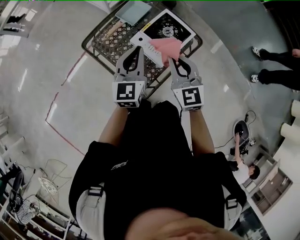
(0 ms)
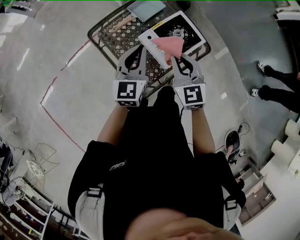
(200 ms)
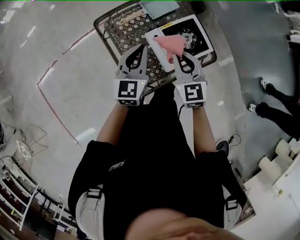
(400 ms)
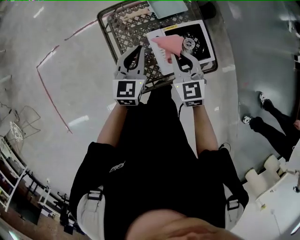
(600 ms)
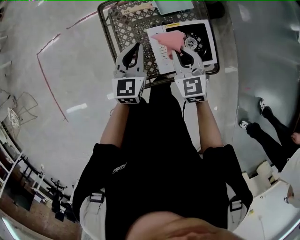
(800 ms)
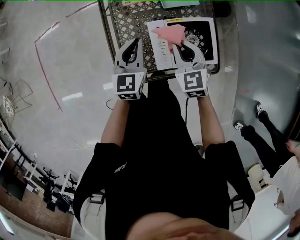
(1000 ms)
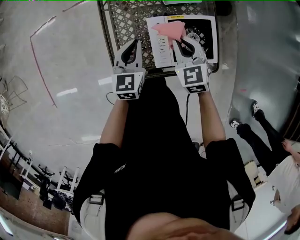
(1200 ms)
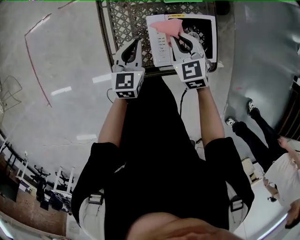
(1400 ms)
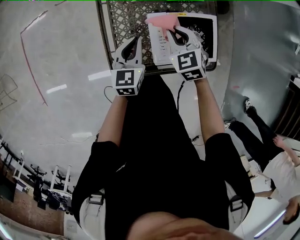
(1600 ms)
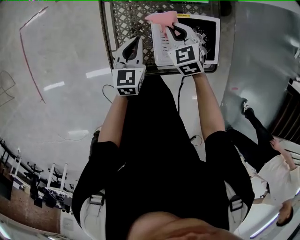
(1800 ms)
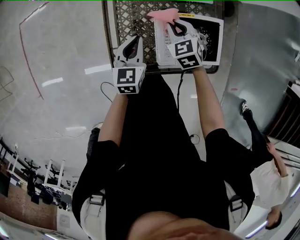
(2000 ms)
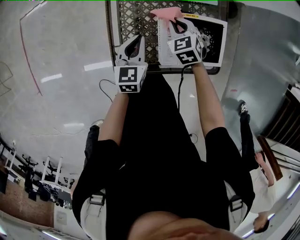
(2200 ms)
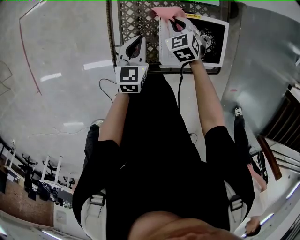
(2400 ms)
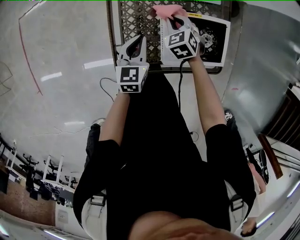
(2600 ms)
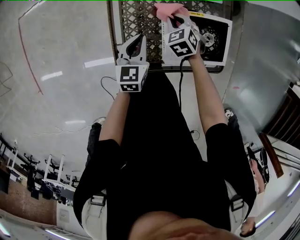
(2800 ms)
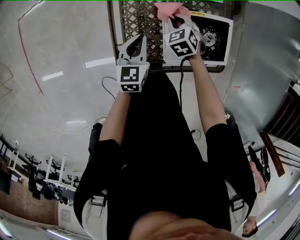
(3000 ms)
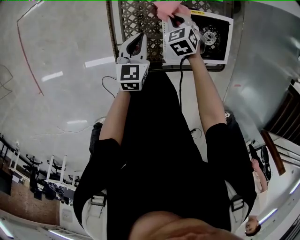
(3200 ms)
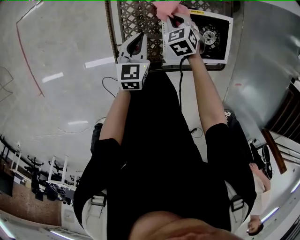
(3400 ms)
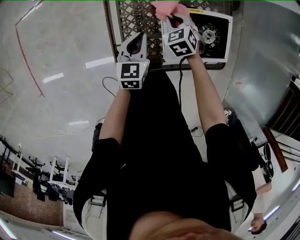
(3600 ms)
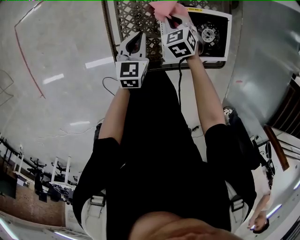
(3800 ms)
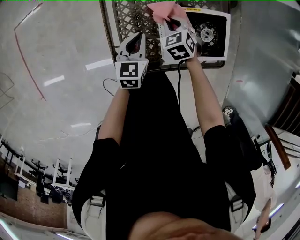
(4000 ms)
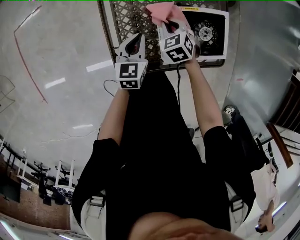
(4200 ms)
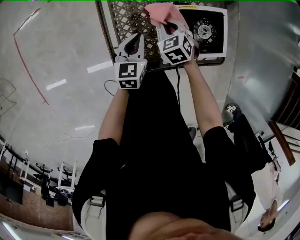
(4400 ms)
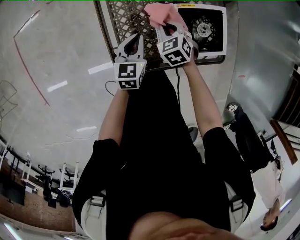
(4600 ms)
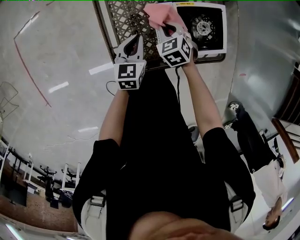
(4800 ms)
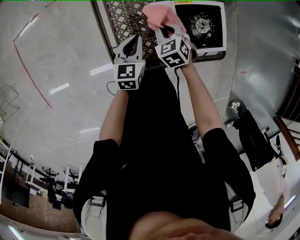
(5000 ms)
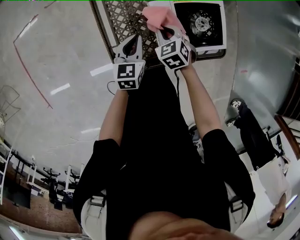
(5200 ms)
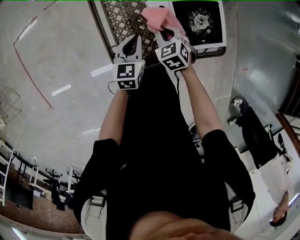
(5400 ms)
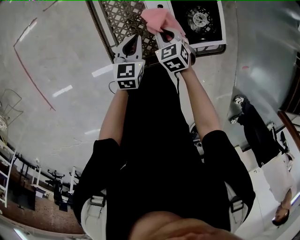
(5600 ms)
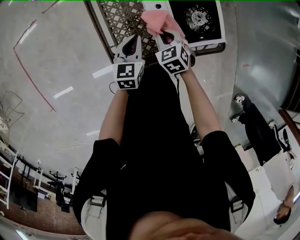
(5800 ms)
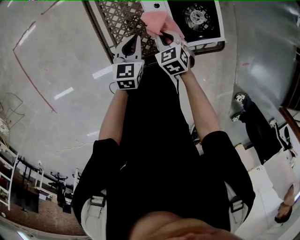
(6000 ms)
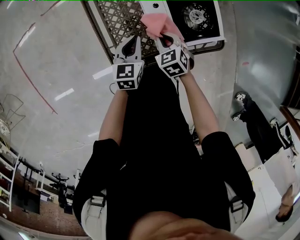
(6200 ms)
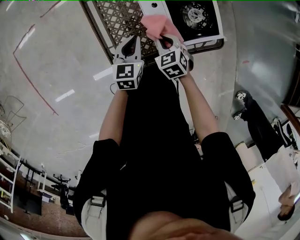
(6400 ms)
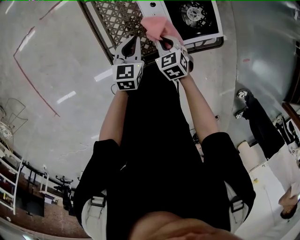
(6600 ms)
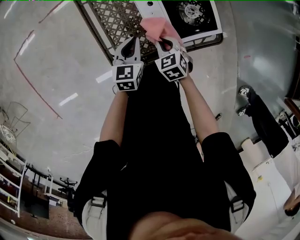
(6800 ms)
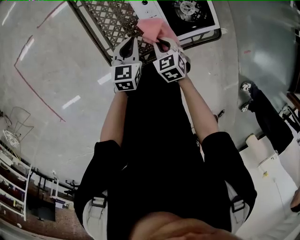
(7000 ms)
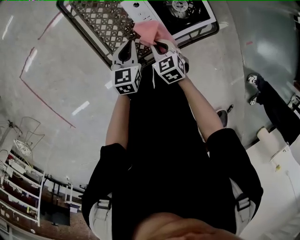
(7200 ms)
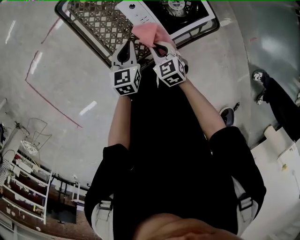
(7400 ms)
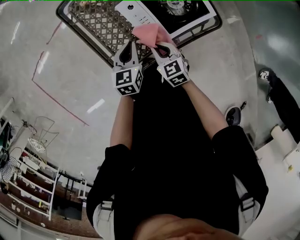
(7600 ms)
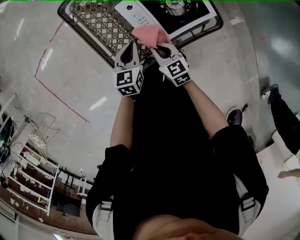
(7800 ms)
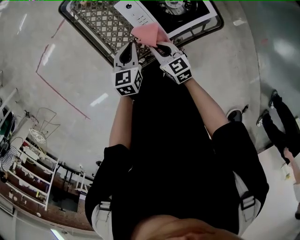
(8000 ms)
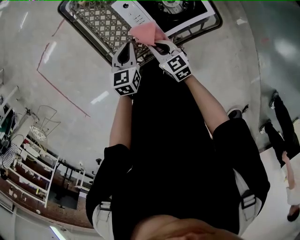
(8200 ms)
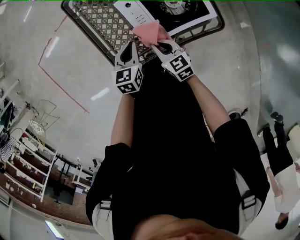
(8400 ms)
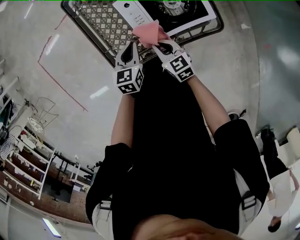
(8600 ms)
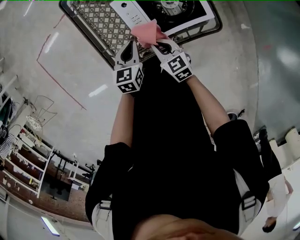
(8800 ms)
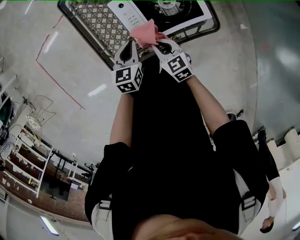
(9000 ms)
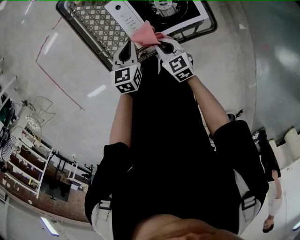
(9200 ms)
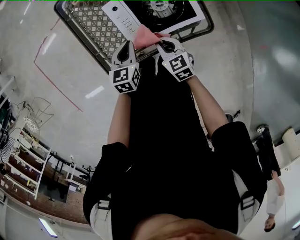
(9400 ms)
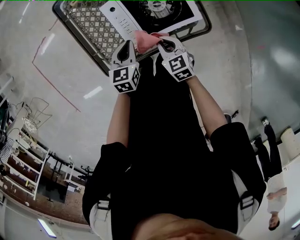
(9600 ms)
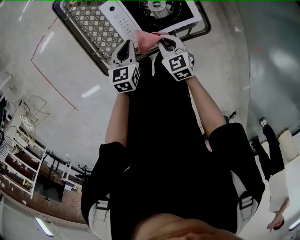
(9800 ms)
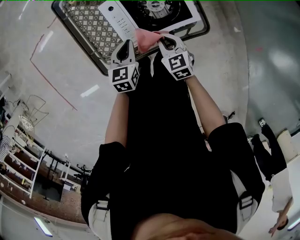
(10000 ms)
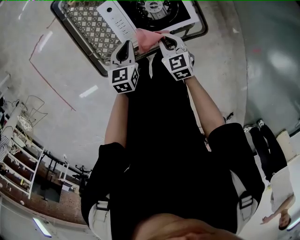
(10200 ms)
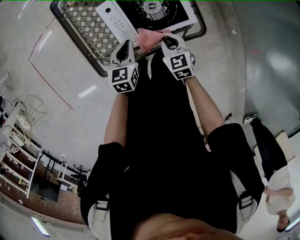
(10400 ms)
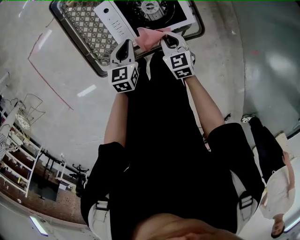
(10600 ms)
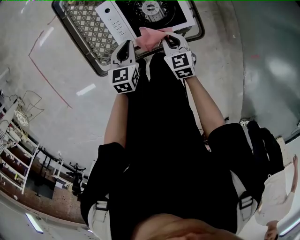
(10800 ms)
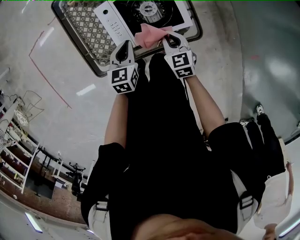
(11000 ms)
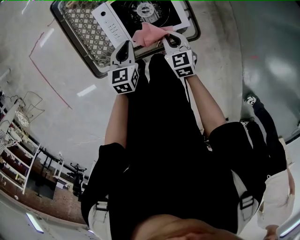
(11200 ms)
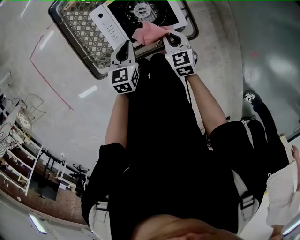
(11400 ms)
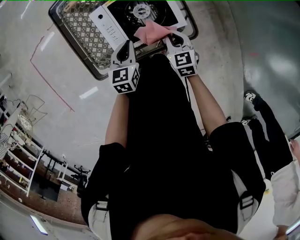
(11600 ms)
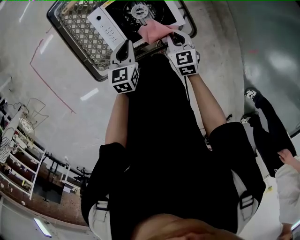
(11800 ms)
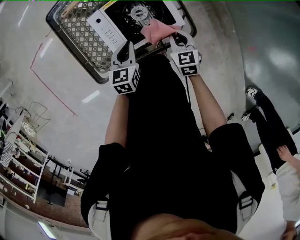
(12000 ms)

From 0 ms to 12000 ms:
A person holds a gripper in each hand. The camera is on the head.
From 0 ms to 1600 ms: Both grippers travel together downward, some 20 cm. The left gripper swivels some 40 degrees; the right gripper turns by about 50 degrees.
From 1600 ms to 3000 ms: The right gripper shifts approximately 15 cm downward, while the left gripper goes approximately 5 cm downward.
From 3000 ms to 4400 ms: The grippers move only a little.
From 4400 ms to 6000 ms: The right gripper shifts about 10 cm backward.
From 6000 ms to 7600 ms: The right gripper heads backward, covering some 5 cm, and swivels some 30 degrees.
From 7600 ms to 9000 ms: The right gripper shifts some 5 cm to the right; the left gripper changes place by roughly 5 cm.
From 9000 ms to 10400 ms: The left gripper shifts about 5 cm to the right. Meanwhile the right gripper shifts about 10 cm to the right.
From 10400 ms to 12000 ms: The right gripper travels to the right by roughly 10 cm. Meanwhile the left gripper moves to the right, approximately 5 cm.

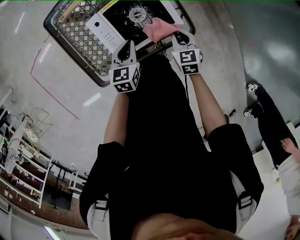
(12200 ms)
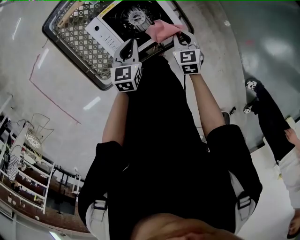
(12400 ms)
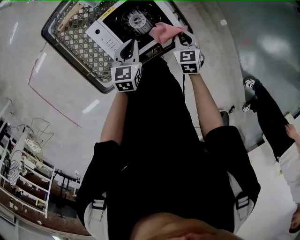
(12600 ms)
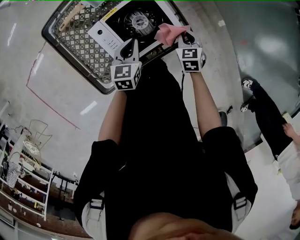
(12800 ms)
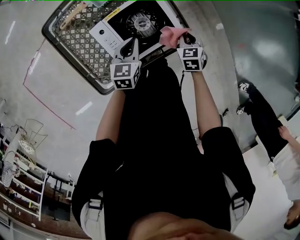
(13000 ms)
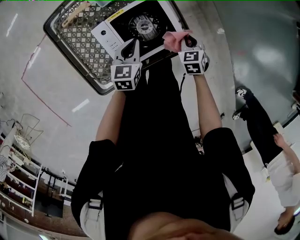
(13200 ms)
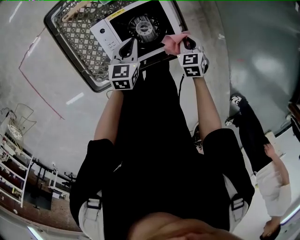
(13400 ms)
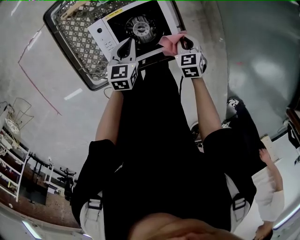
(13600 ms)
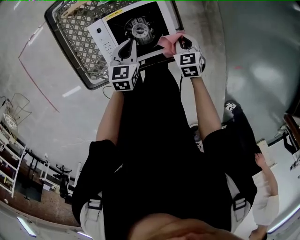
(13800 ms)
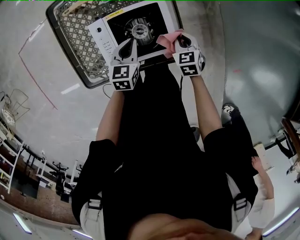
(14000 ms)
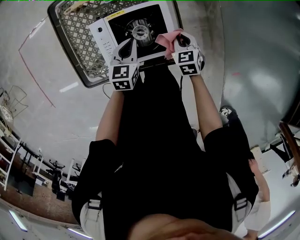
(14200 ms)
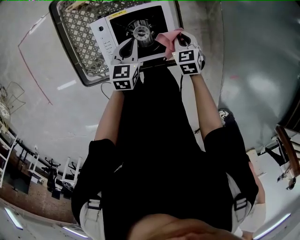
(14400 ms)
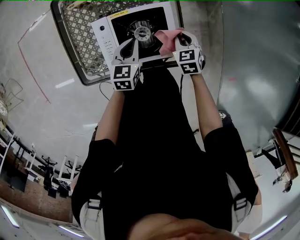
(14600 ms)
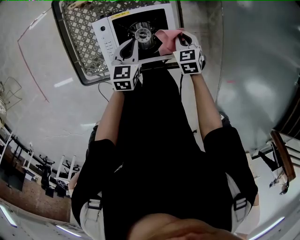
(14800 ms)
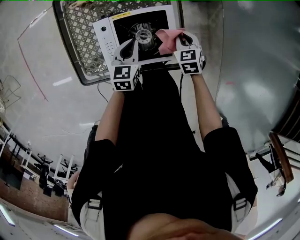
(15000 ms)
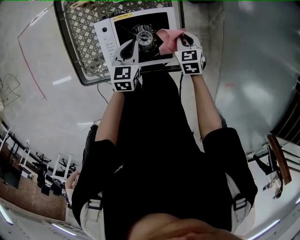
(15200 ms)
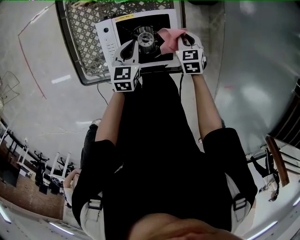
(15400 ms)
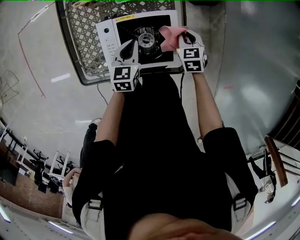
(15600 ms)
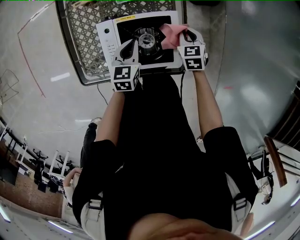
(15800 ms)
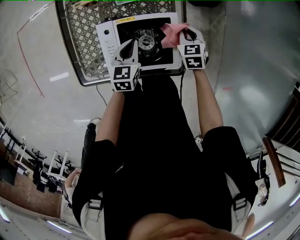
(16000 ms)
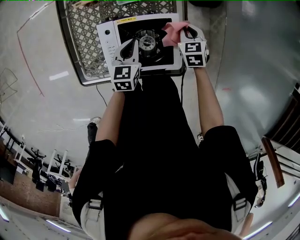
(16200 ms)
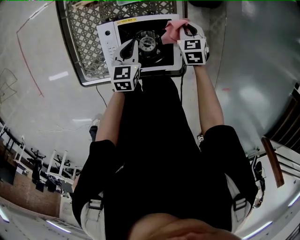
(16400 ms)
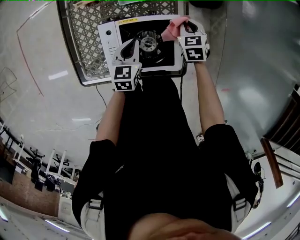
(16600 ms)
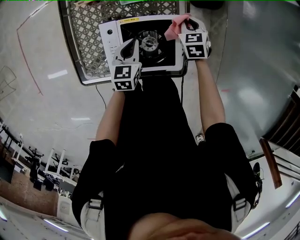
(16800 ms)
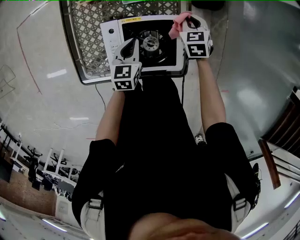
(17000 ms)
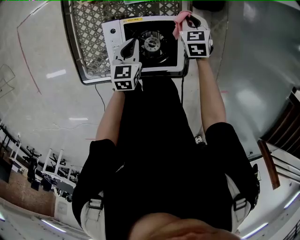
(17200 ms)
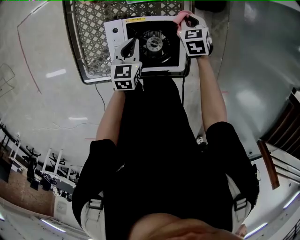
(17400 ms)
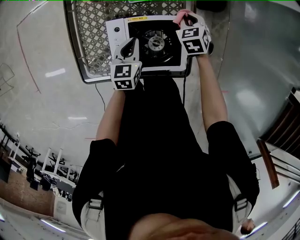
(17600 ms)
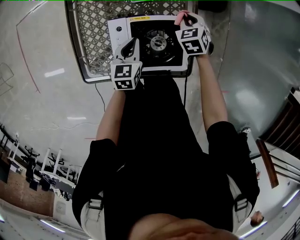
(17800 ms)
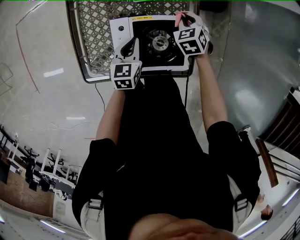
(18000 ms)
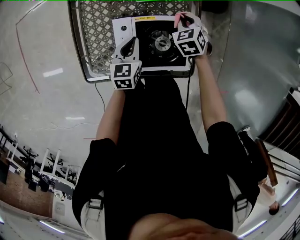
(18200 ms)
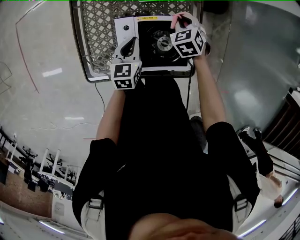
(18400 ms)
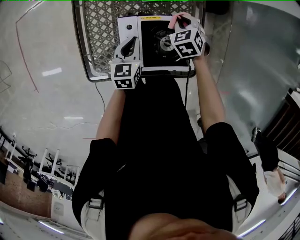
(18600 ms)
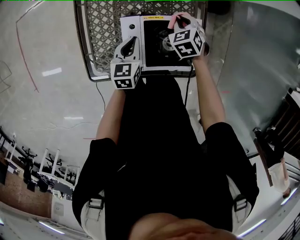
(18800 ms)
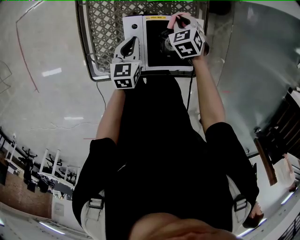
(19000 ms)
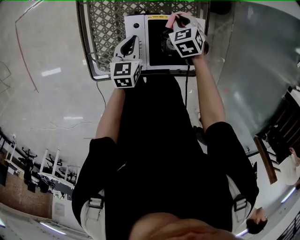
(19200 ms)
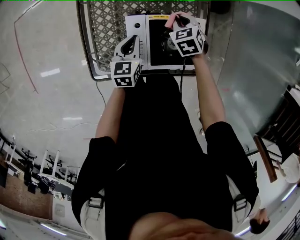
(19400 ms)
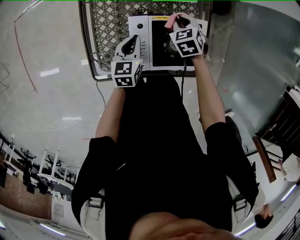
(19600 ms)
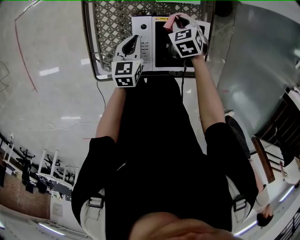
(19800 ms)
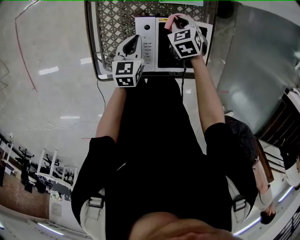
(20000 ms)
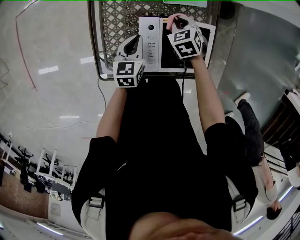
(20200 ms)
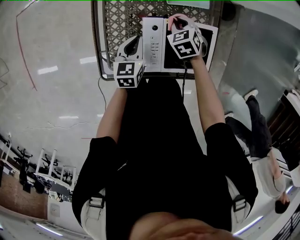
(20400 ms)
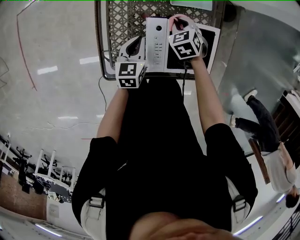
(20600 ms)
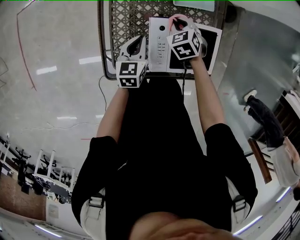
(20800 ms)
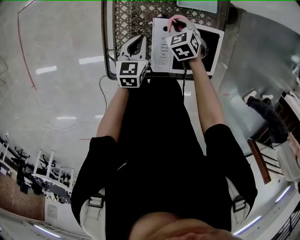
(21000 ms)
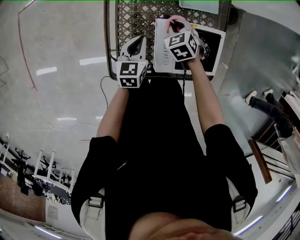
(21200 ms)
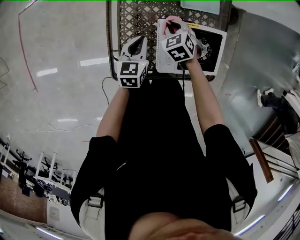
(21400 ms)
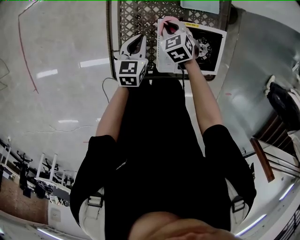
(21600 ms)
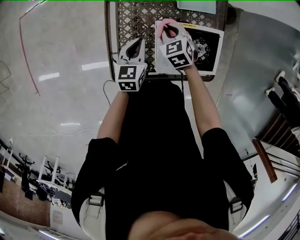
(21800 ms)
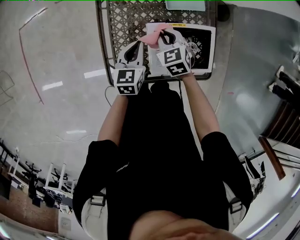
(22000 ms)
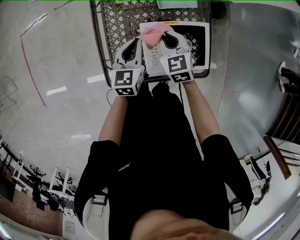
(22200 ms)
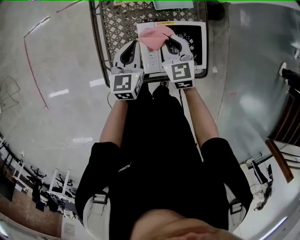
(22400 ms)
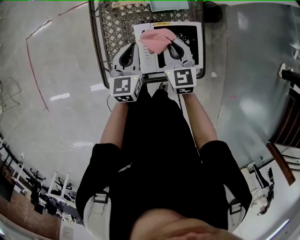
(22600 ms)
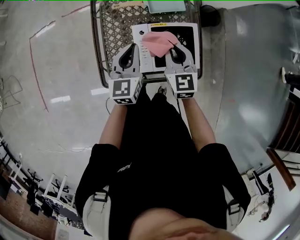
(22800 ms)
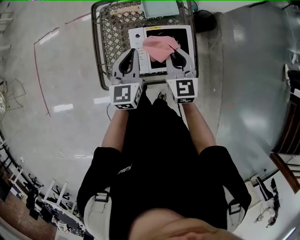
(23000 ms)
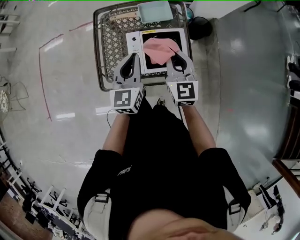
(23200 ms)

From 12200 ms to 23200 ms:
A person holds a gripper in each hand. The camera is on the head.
From 12200 ms to 13800 ms: The grippers both shift forward by some 10 cm.
From 13800 ms to 15400 ms: The right gripper heads forward, covering approximately 10 cm.
From 15400 ms to 17000 ms: The right gripper moves forward, about 10 cm.
From 17000 ms to 18400 ms: Both grippers move to the left, about 10 cm.
From 18400 ms to 20000 ms: Both grippers travel together to the left, about 10 cm.
From 20000 ms to 21600 ms: The left gripper travels to the left by roughly 10 cm. Meanwhile the right gripper heads to the left, covering roughly 15 cm.
From 21600 ms to 23200 ms: Both grippers move upward, to the right and backward, some 35 cm. The right gripper points its fingers about 50 degrees further upward. Meanwhile the left gripper changes its angle by roughly 30 degrees.

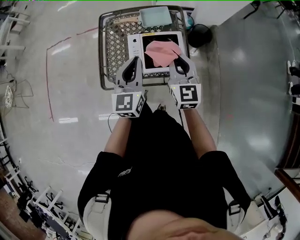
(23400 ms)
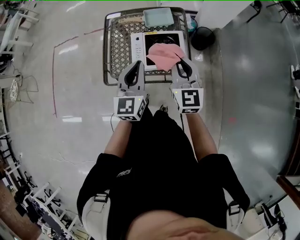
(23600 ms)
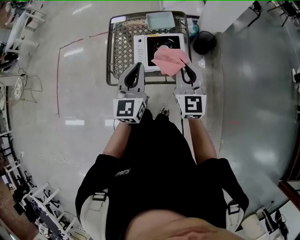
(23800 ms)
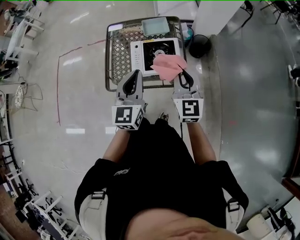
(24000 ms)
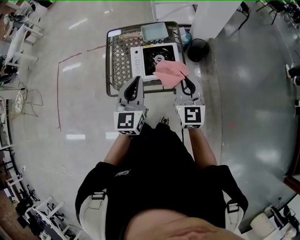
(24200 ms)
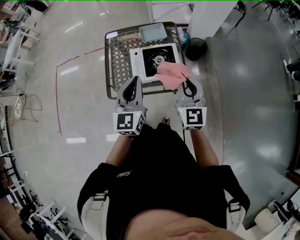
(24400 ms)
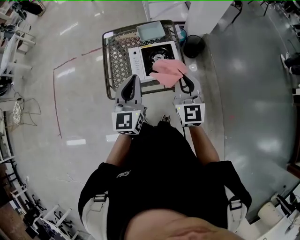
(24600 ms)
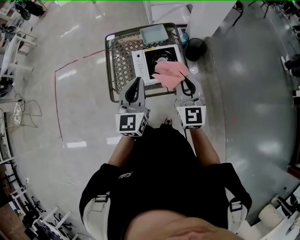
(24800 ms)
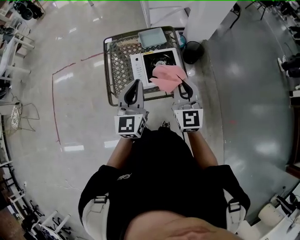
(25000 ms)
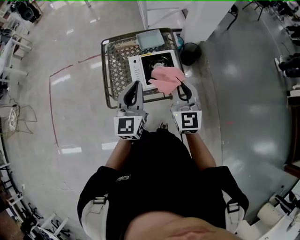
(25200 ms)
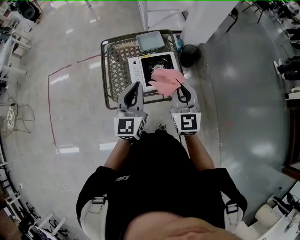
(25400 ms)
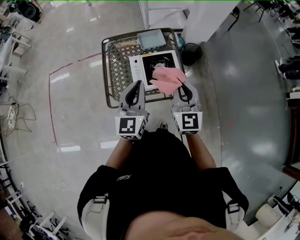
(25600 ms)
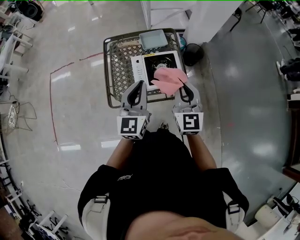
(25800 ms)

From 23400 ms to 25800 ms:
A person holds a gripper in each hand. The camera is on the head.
From 23400 ms to 24600 ms: Both grippers move backward and upward, some 10 cm.
From 24600 ms to 25800 ms: There are only small adjustments of the grippers.
